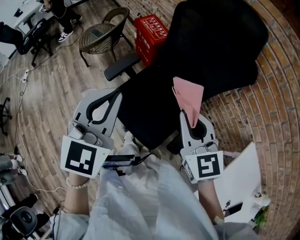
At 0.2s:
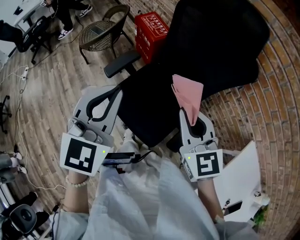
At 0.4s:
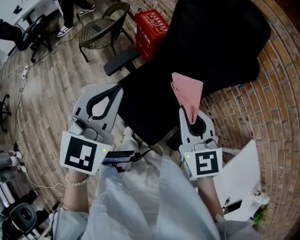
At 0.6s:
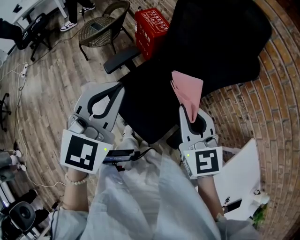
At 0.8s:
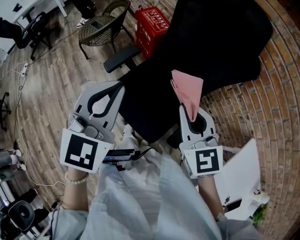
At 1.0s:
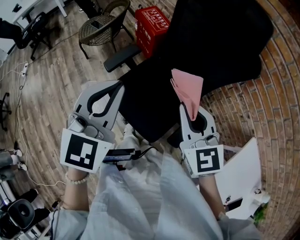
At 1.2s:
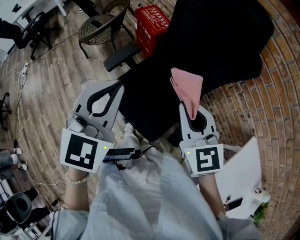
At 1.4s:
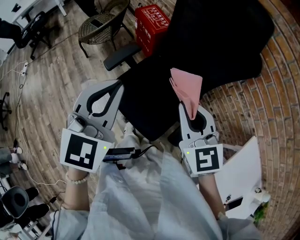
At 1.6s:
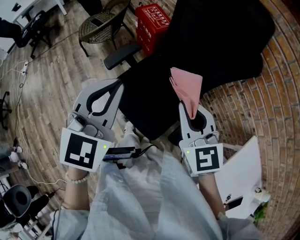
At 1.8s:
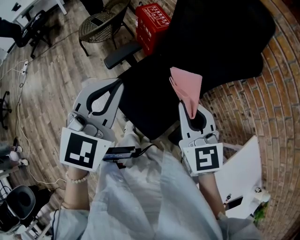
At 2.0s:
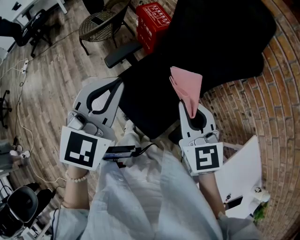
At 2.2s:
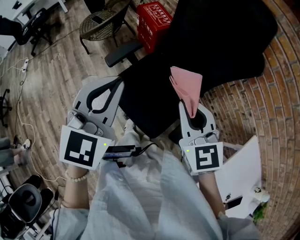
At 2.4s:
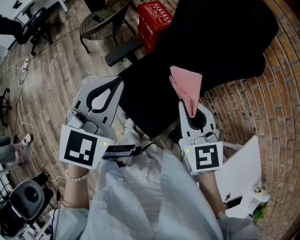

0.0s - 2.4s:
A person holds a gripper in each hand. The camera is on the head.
0.0s - 1.2s: The grippers move only a little.
1.2s - 2.4s: Neither gripper changes place.

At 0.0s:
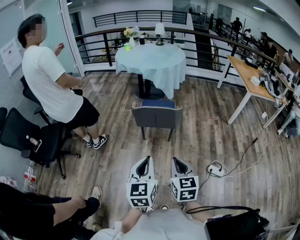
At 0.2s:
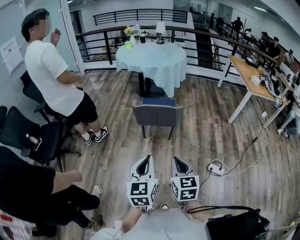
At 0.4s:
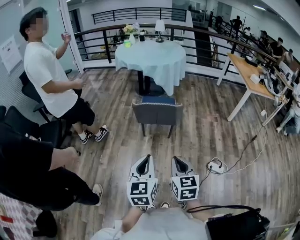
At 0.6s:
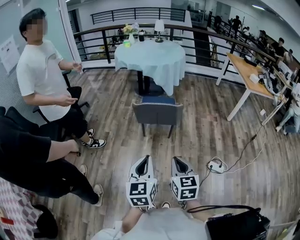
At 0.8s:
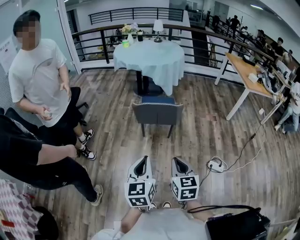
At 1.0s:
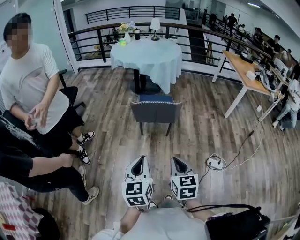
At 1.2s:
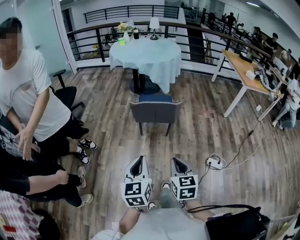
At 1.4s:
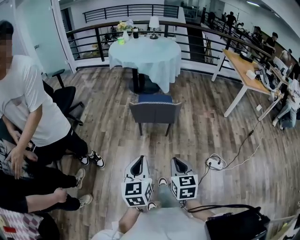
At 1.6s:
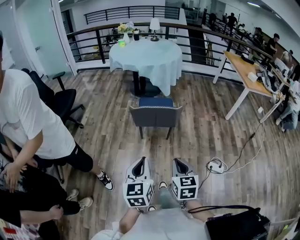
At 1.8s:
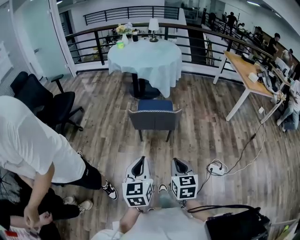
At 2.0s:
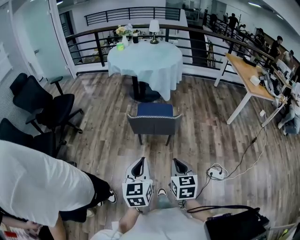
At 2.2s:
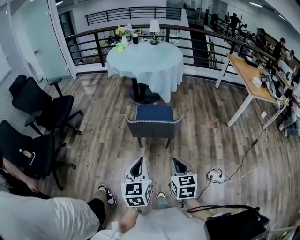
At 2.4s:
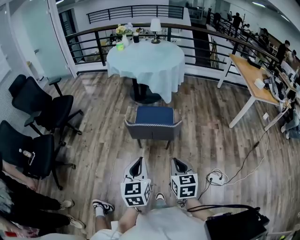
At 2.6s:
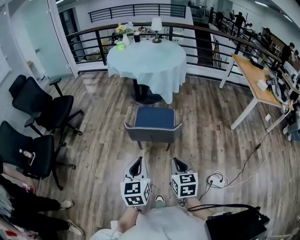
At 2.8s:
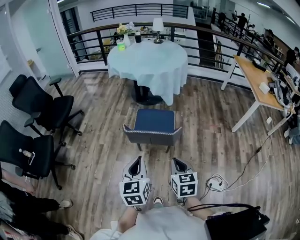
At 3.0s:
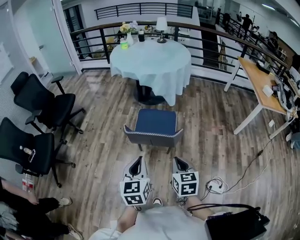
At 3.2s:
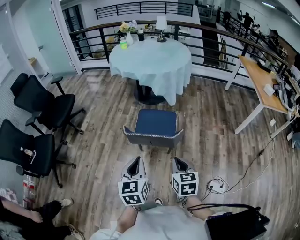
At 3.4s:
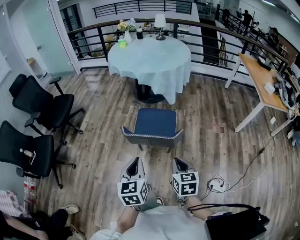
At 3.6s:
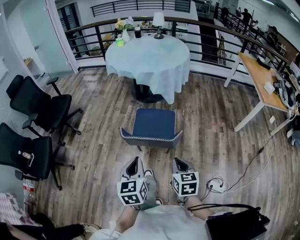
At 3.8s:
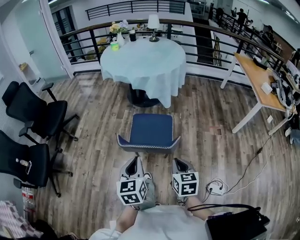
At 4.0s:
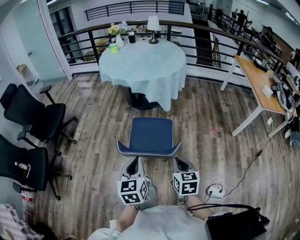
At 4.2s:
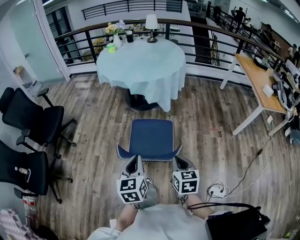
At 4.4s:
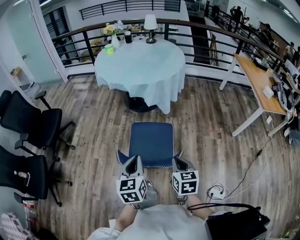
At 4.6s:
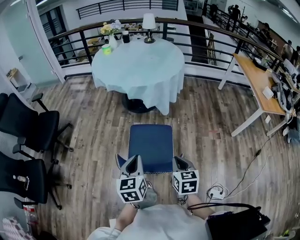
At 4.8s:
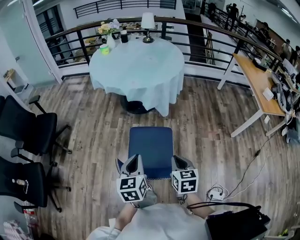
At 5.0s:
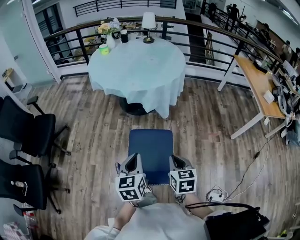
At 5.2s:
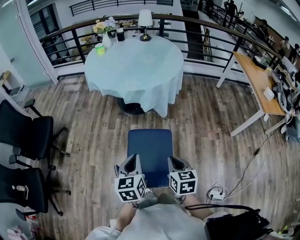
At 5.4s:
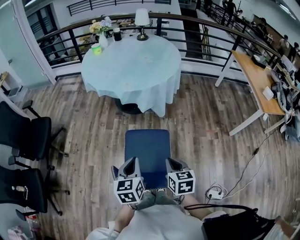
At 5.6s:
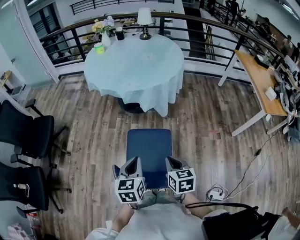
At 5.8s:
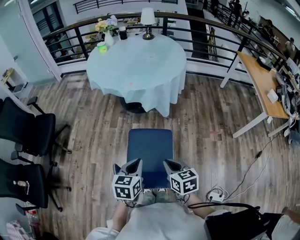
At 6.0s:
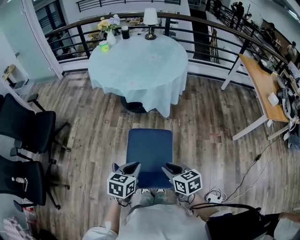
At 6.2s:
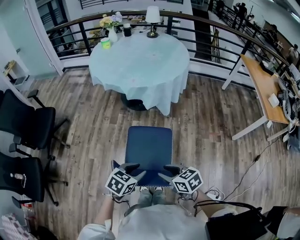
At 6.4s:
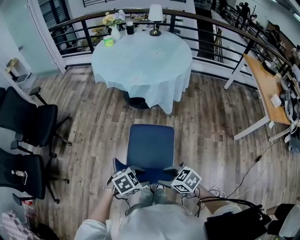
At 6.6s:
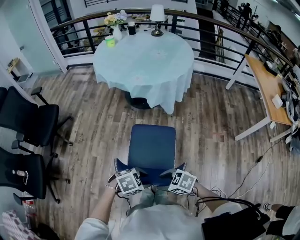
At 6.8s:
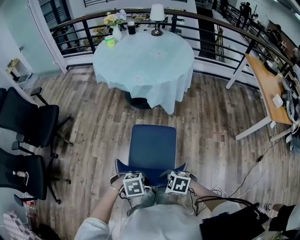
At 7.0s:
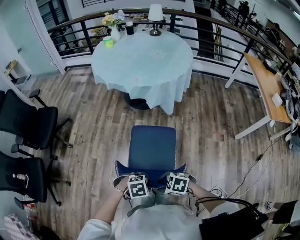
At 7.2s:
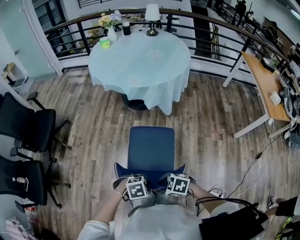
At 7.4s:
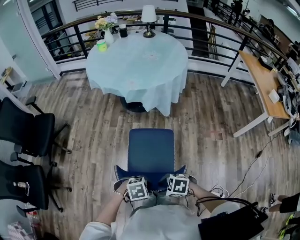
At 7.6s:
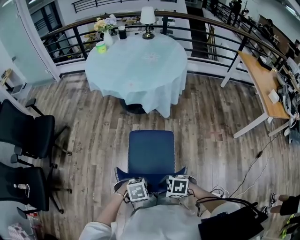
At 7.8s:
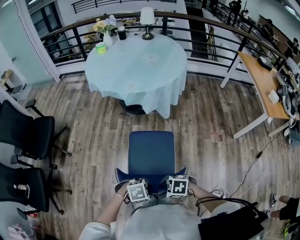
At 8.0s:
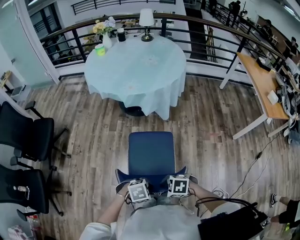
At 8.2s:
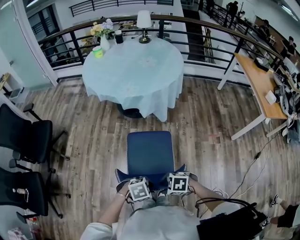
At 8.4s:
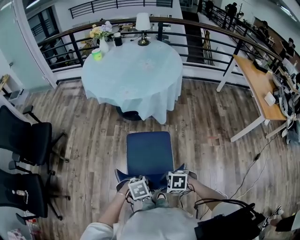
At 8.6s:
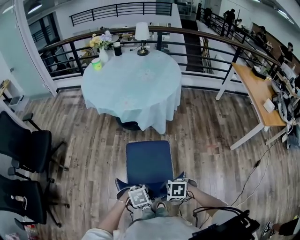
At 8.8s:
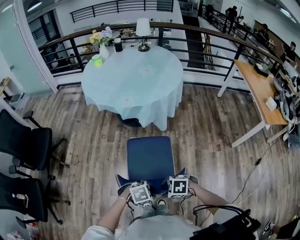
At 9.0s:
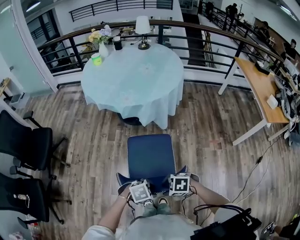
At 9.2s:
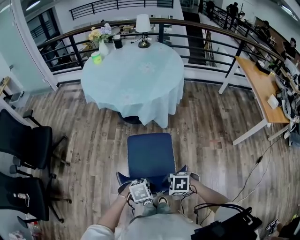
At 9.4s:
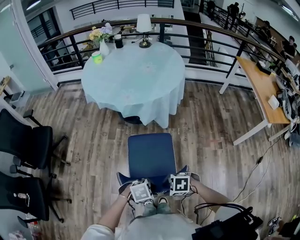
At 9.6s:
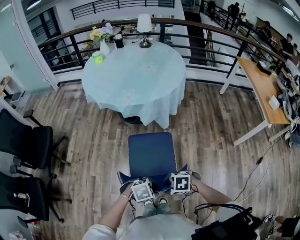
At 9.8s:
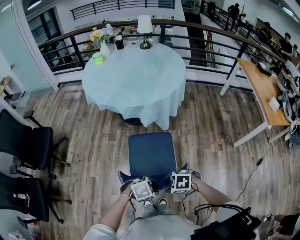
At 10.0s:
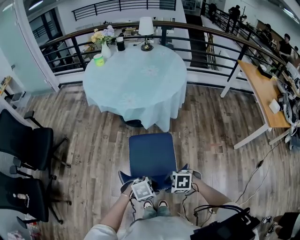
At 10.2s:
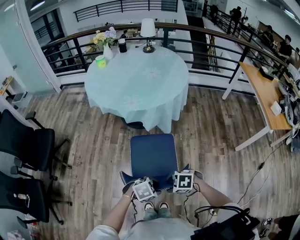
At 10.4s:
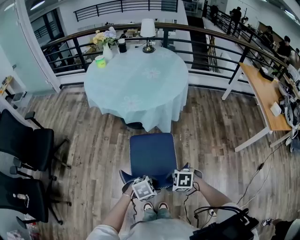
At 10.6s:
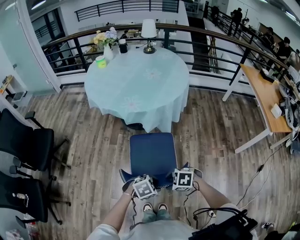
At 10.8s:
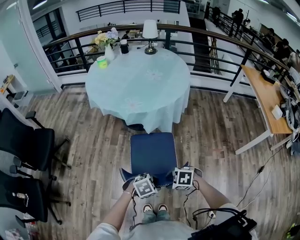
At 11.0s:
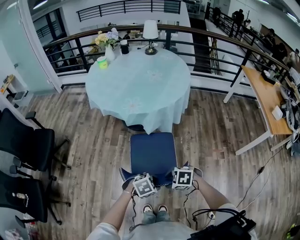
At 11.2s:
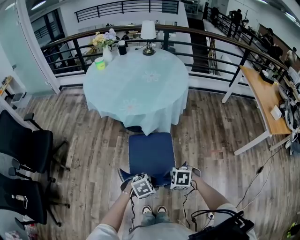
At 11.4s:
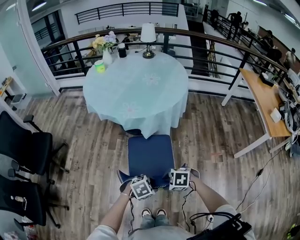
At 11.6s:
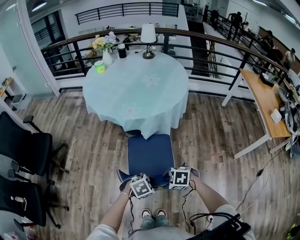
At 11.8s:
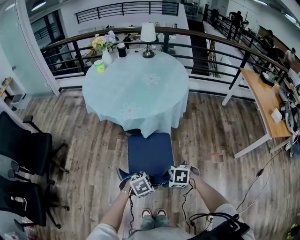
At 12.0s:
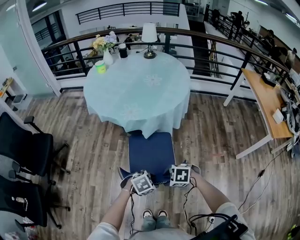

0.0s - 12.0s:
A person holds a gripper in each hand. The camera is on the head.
0.0s - 1.6s: The left gripper shifts about 5 cm to the left. Meanwhile the right gripper moves roughly 5 cm.
1.6s - 3.0s: The grippers both shift forward by some 20 cm.
3.0s - 4.4s: The grippers both shift forward by some 20 cm.
4.4s - 6.0s: The left gripper is displaced forward and downward by approximately 10 cm, and swivels about 30 degrees. Meanwhile the right gripper is displaced forward by approximately 10 cm, and swivels about 30 degrees.
6.0s - 7.6s: The right gripper shifts by approximately 15 cm, changes its angle by some 60 degrees, and opens. Meanwhile the left gripper changes place by about 15 cm, turns by about 70 degrees, and opens.
7.6s - 9.0s: The two grippers go roughly 10 cm backward.
9.0s - 10.4s: The grippers both shift backward by roughly 5 cm.
10.4s - 12.0s: The left gripper shifts by some 10 cm, while the right gripper ends up about 10 cm from where it was.

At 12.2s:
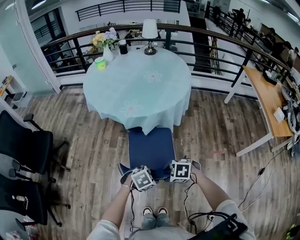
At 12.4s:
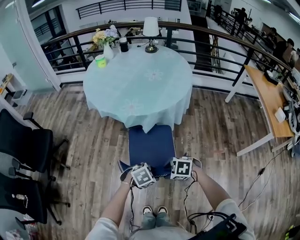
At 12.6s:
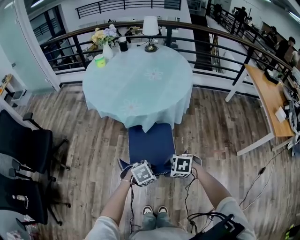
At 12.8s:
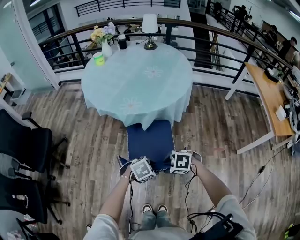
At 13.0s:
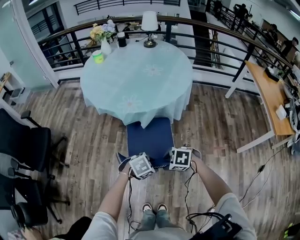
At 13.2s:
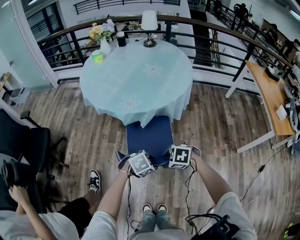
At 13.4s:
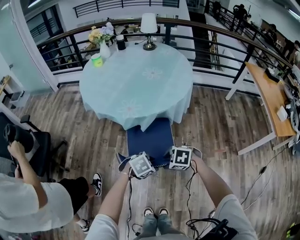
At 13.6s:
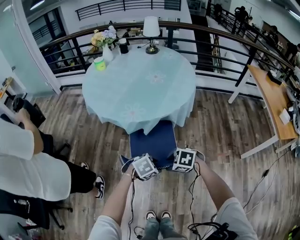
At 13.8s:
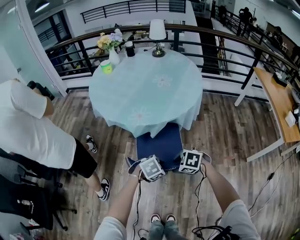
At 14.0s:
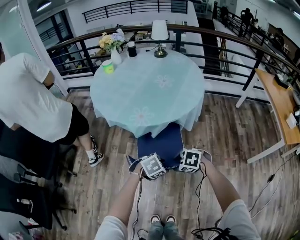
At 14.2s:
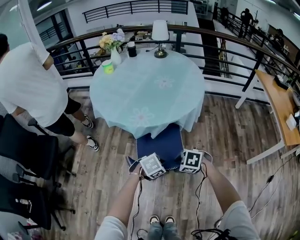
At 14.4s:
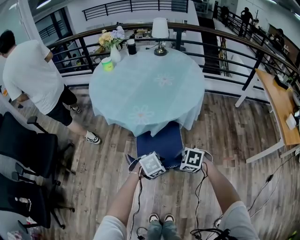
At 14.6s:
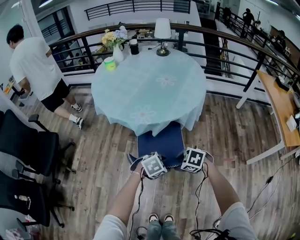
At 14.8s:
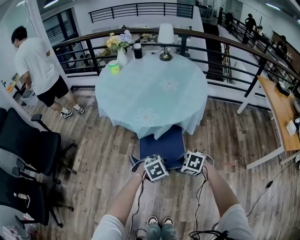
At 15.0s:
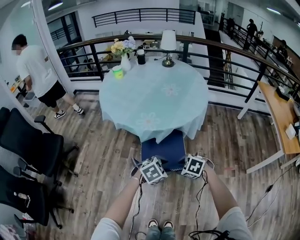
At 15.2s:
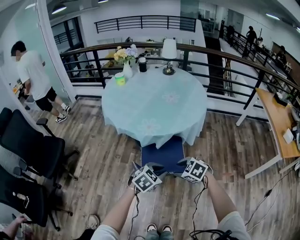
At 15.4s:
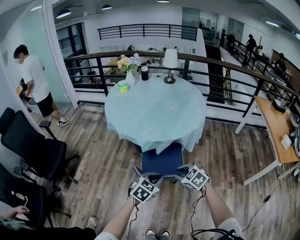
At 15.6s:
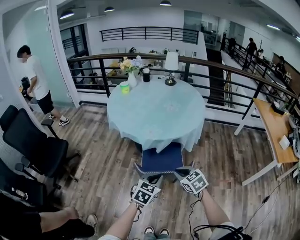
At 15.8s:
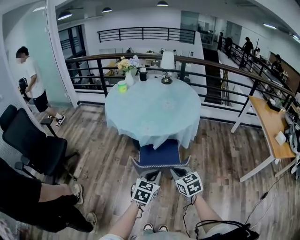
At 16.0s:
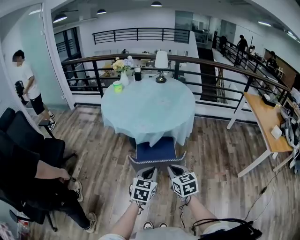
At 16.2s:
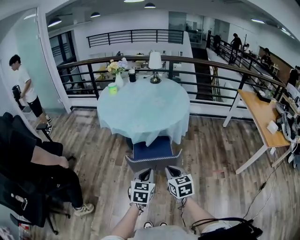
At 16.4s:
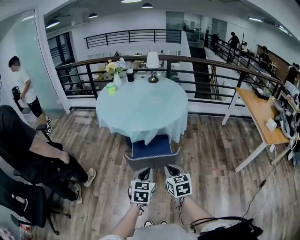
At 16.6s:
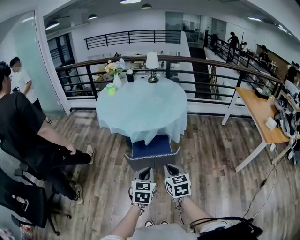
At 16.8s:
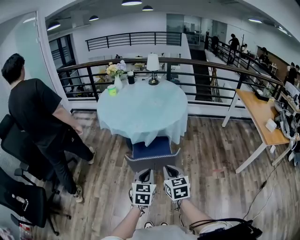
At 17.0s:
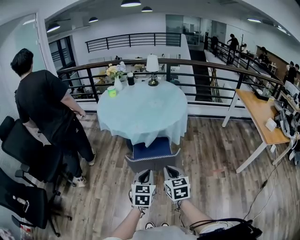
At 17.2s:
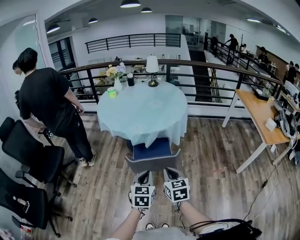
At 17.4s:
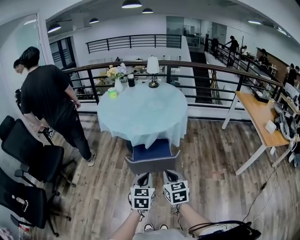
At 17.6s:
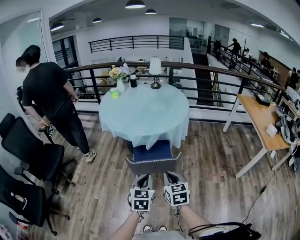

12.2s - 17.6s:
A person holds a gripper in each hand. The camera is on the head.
12.2s - 13.6s: The left gripper ends up approximately 10 cm from where it was. The right gripper moves approximately 10 cm.
13.6s - 15.0s: The left gripper goes approximately 5 cm upward.
15.0s - 16.2s: The right gripper travels upward by approximately 15 cm, tilts its fingers roughly 40 degrees upward, and closes; the left gripper changes place by about 20 cm, swivels about 50 degrees, and closes up.
16.2s - 17.6s: The grippers make only small movements.

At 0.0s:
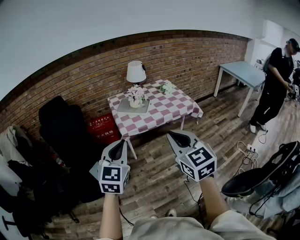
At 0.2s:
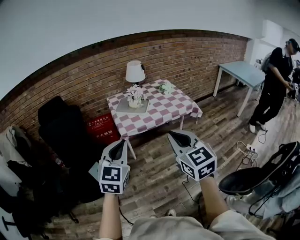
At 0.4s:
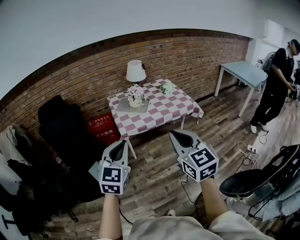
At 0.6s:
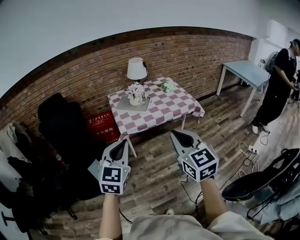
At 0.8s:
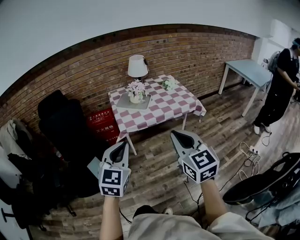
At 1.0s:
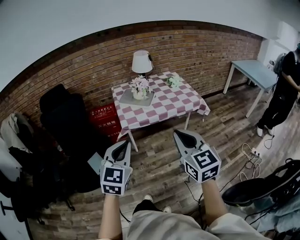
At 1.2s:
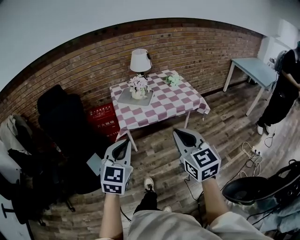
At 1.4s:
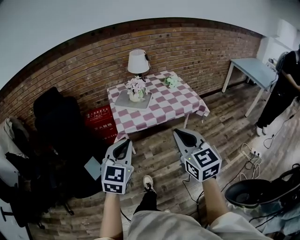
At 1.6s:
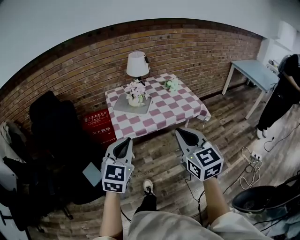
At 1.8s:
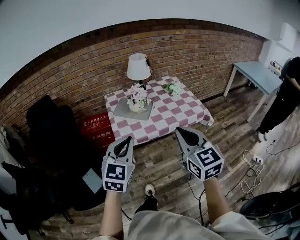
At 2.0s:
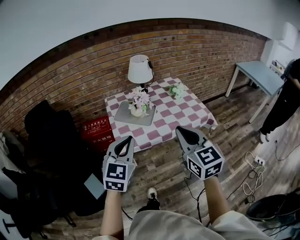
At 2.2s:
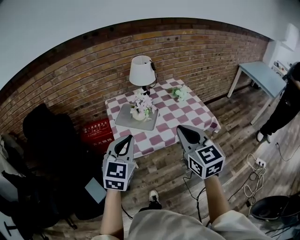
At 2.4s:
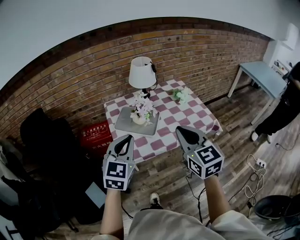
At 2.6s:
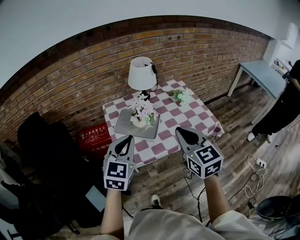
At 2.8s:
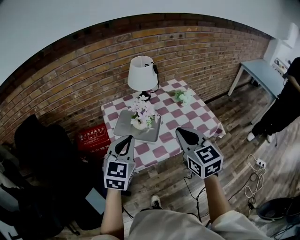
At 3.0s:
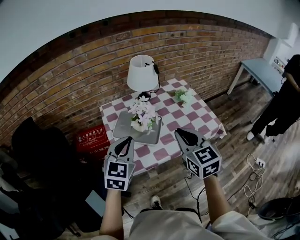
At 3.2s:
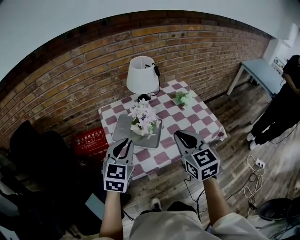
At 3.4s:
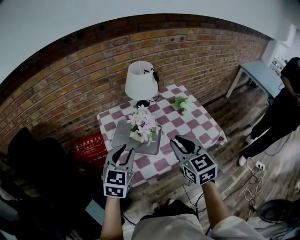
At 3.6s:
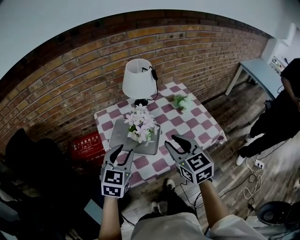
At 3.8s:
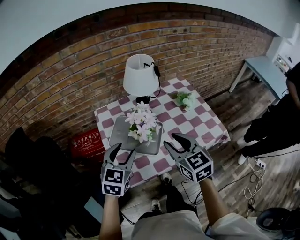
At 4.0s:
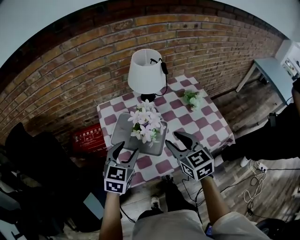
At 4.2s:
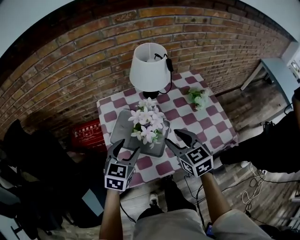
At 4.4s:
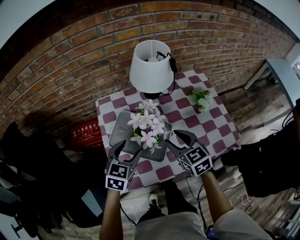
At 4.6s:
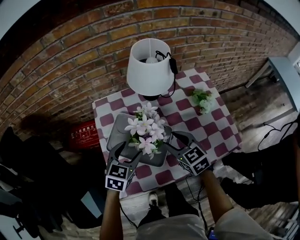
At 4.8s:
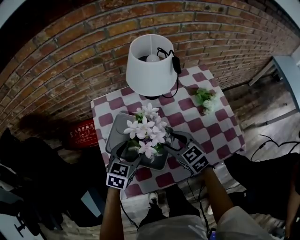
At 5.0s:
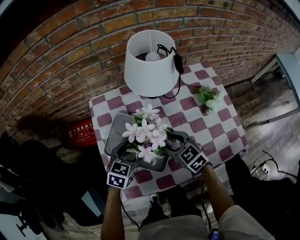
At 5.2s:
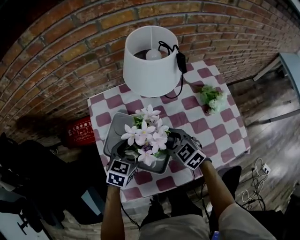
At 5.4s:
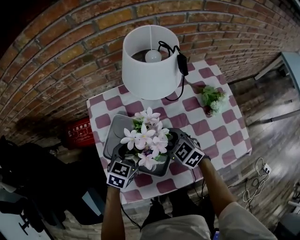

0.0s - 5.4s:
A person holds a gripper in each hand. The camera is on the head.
0.0s - 1.4s: Both grippers travel together forward, to the right and downward, roughly 10 cm.
1.4s - 2.8s: Both grippers travel together forward, some 35 cm.
2.8s - 4.0s: Both grippers move forward and downward, some 20 cm. The right gripper opens up; the left gripper opens up.
4.0s - 5.4s: Both grippers move downward and forward, roughly 25 cm. The right gripper changes its angle by about 40 degrees.
